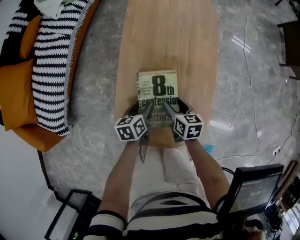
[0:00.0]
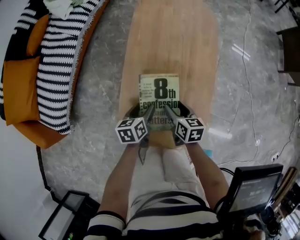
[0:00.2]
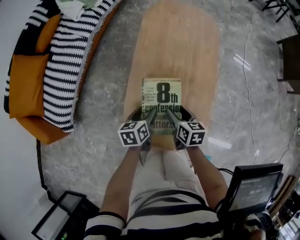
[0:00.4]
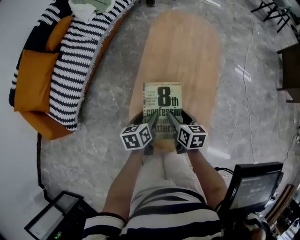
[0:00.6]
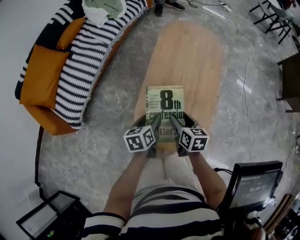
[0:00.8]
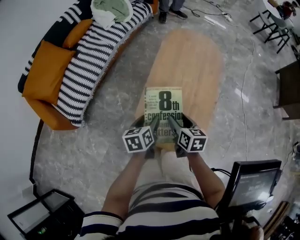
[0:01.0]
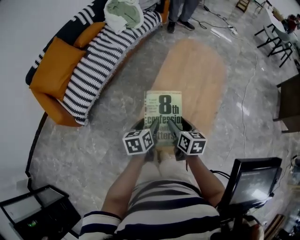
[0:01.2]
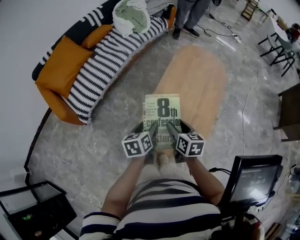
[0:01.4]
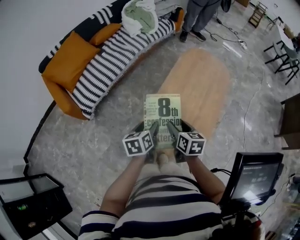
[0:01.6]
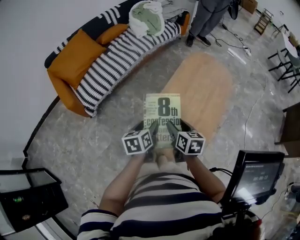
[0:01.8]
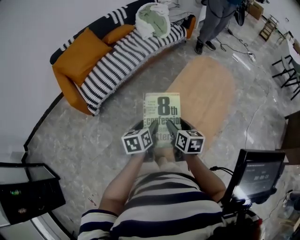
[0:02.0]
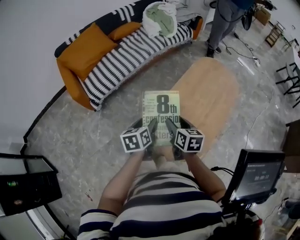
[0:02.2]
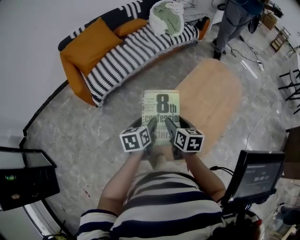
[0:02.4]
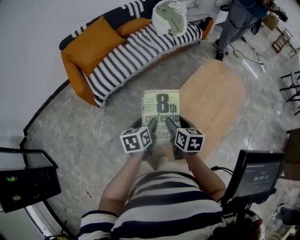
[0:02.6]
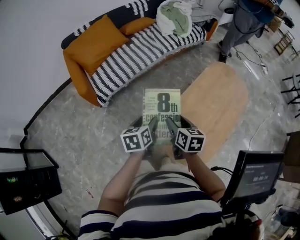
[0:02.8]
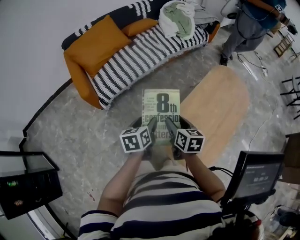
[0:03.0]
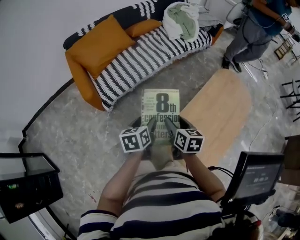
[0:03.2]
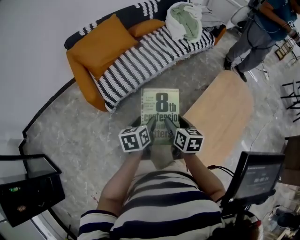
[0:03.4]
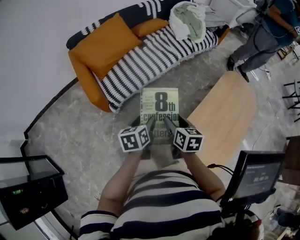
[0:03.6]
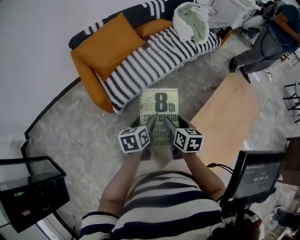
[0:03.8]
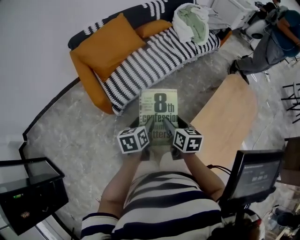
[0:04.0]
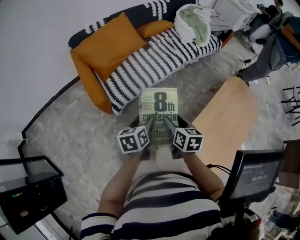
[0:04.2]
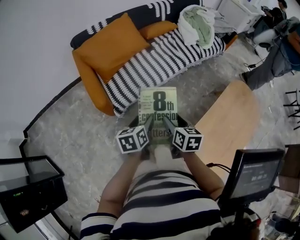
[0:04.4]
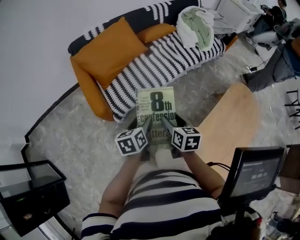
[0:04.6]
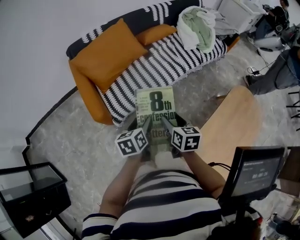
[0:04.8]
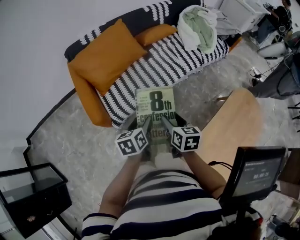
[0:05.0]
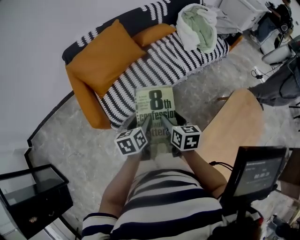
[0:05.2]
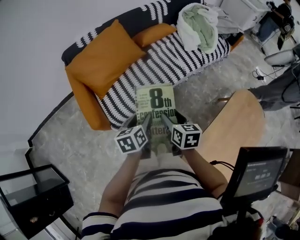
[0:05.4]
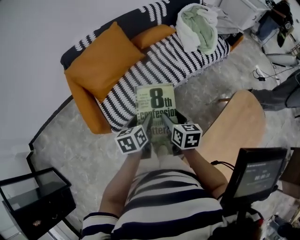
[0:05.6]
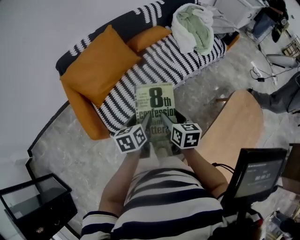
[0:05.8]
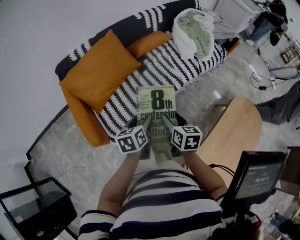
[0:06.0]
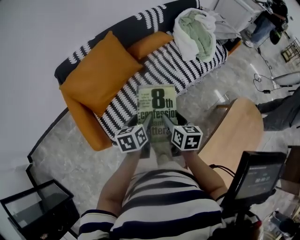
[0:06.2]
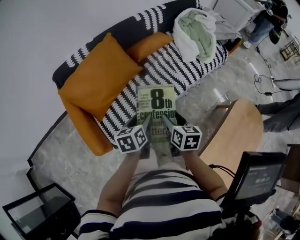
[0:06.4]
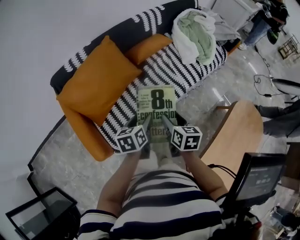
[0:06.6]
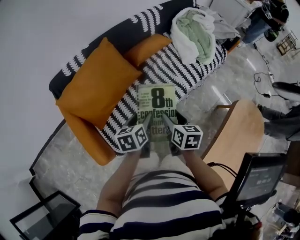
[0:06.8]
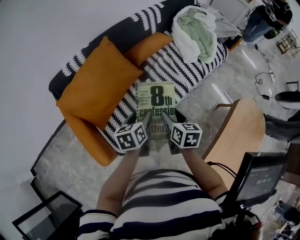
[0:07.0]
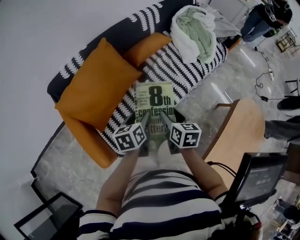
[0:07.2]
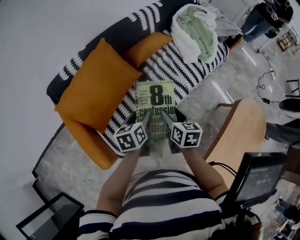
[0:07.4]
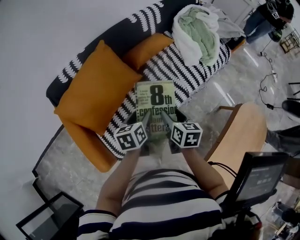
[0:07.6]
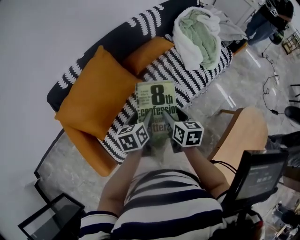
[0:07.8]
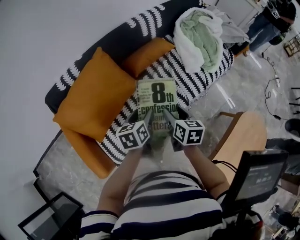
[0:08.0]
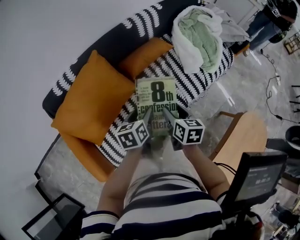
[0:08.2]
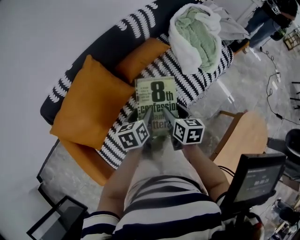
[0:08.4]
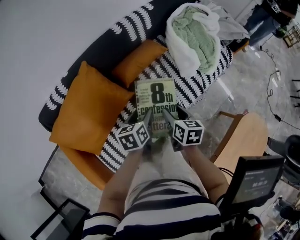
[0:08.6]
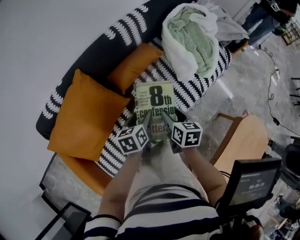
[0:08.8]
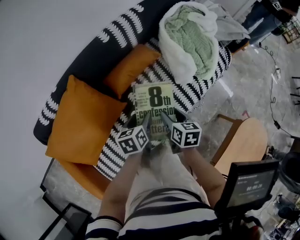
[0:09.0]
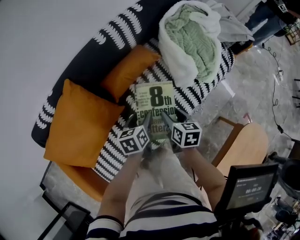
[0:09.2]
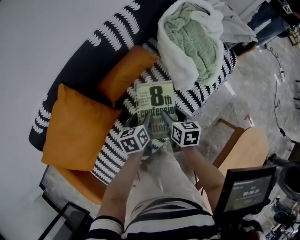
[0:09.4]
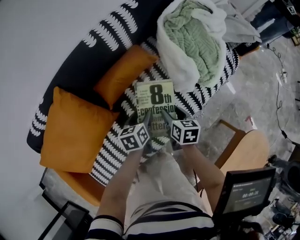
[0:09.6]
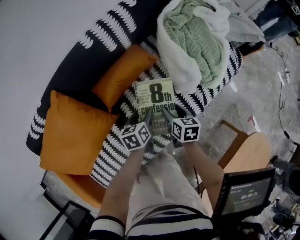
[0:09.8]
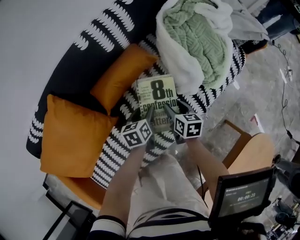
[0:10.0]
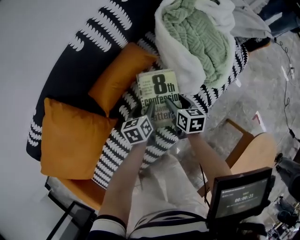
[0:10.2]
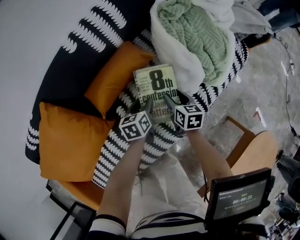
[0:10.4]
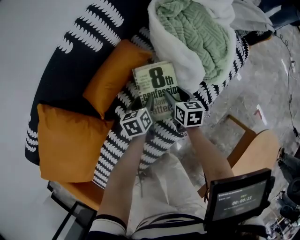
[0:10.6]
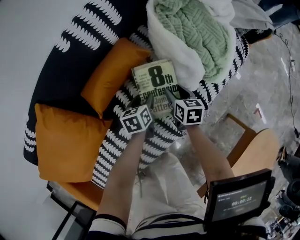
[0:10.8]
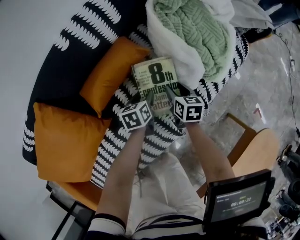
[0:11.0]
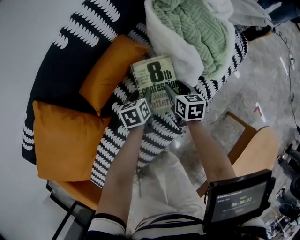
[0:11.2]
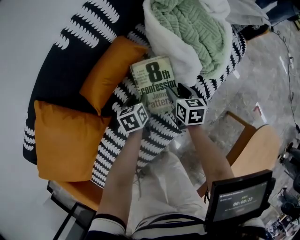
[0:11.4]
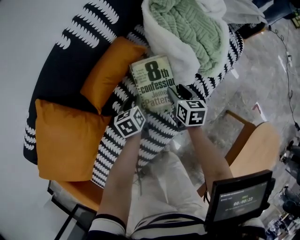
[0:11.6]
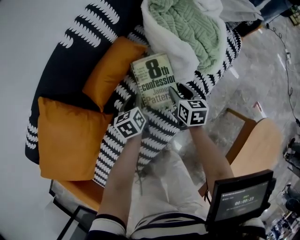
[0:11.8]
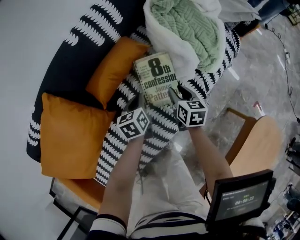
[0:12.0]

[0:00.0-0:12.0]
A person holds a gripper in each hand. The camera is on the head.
0.0 to 1.6 s: The right gripper travels upward and to the left by roughly 25 cm, and swivels roughly 20 degrees; the left gripper travels upward, backward and to the left by roughly 30 cm, and swivels about 30 degrees.
1.6 to 3.0 s: The left gripper moves to the left, about 15 cm. The right gripper travels to the left and forward by approximately 15 cm.
3.0 to 4.4 s: The grippers both shift to the left and forward by approximately 20 cm.
4.4 to 6.0 s: Both grippers move forward, some 25 cm.
6.0 to 7.6 s: Both grippers travel together forward, roughly 15 cm.
7.6 to 9.0 s: The grippers both shift forward and to the right by approximately 20 cm.
9.0 to 10.4 s: Both grippers move downward, forward and to the right, roughly 25 cm.
10.4 to 12.0 s: The right gripper changes place by approximately 5 cm; the left gripper changes place by about 5 cm, and closes up.

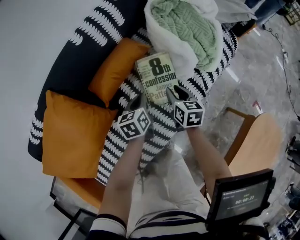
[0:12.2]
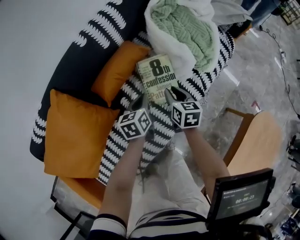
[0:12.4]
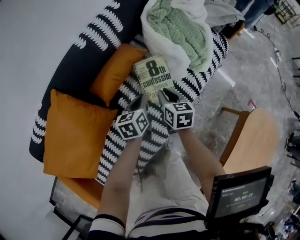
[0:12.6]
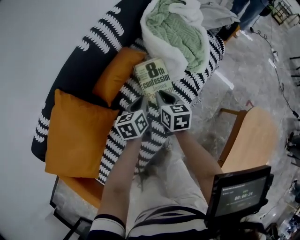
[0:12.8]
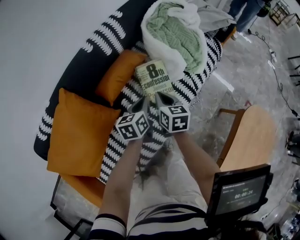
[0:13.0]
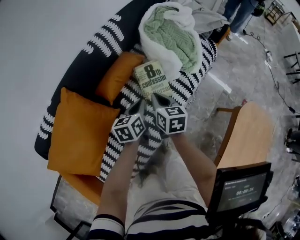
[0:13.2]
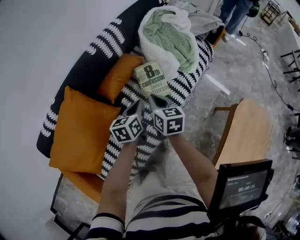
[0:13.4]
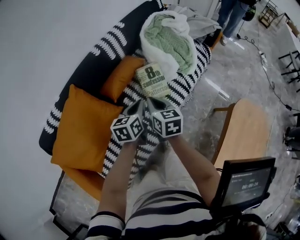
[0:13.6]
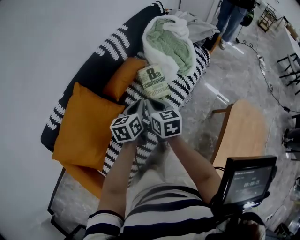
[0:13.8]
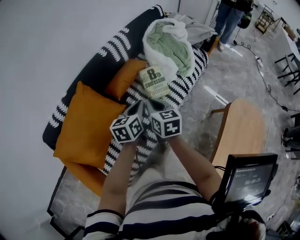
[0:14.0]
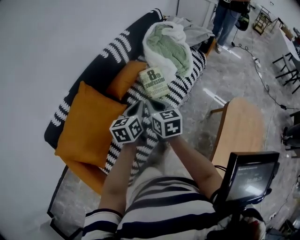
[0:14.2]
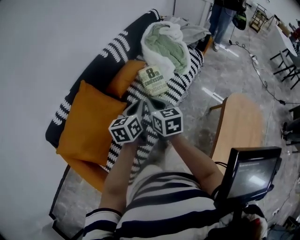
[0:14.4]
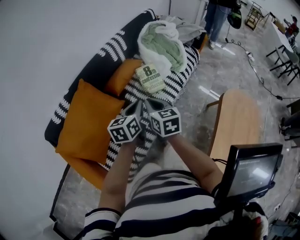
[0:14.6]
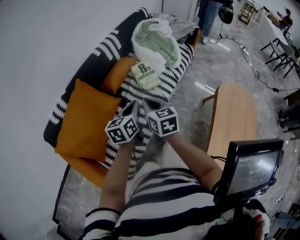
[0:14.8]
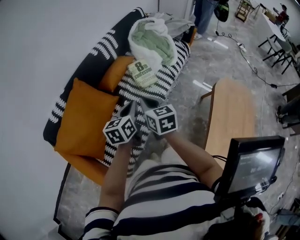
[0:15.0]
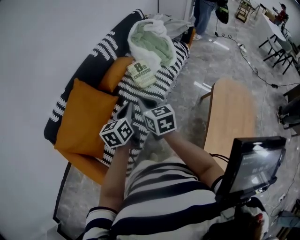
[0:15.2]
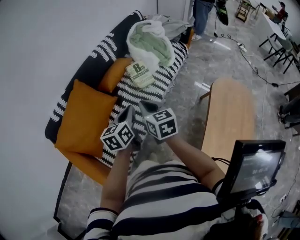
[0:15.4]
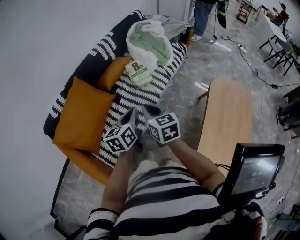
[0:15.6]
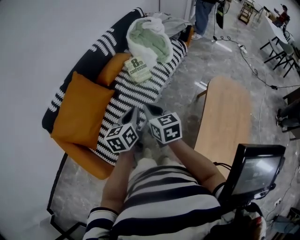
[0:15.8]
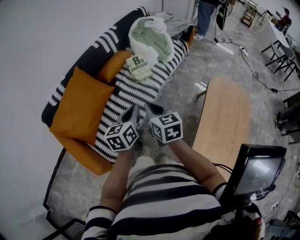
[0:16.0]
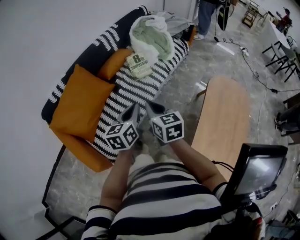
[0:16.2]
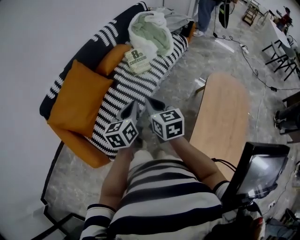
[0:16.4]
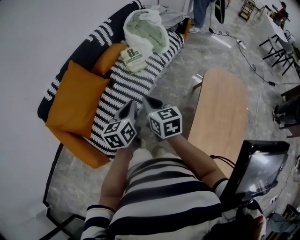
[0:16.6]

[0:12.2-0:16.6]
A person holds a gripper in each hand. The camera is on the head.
12.2 to 13.6 s: The left gripper travels upward and backward by about 25 cm, while the right gripper heads upward, backward and to the left, covering some 25 cm, and closes its fingers.
13.6 to 15.2 s: The grippers both shift backward and upward by about 25 cm.
15.2 to 16.6 s: Both grippers travel together backward and to the right, roughly 15 cm.

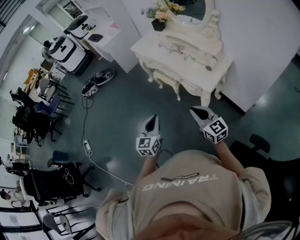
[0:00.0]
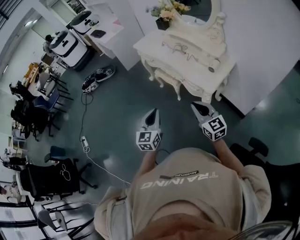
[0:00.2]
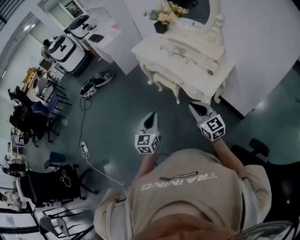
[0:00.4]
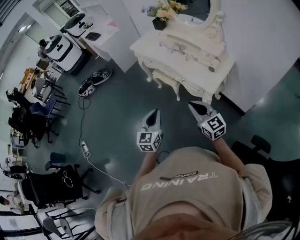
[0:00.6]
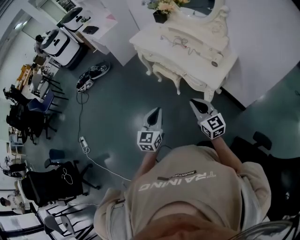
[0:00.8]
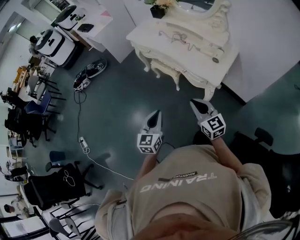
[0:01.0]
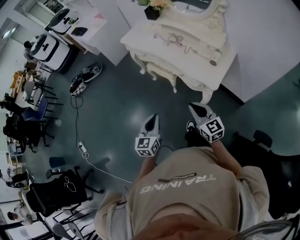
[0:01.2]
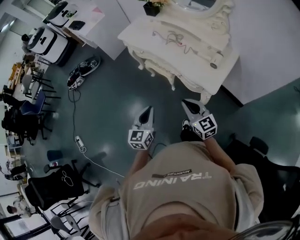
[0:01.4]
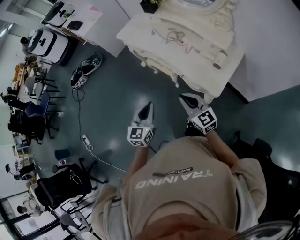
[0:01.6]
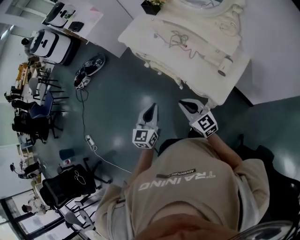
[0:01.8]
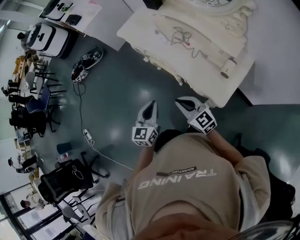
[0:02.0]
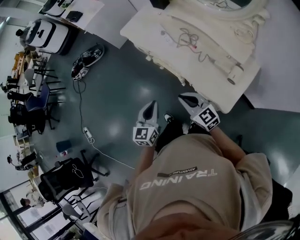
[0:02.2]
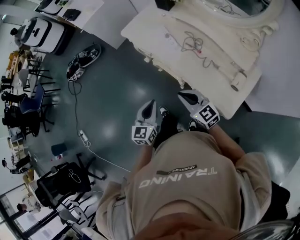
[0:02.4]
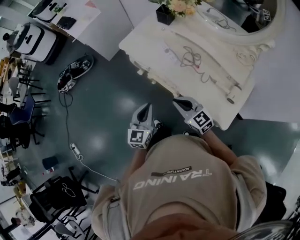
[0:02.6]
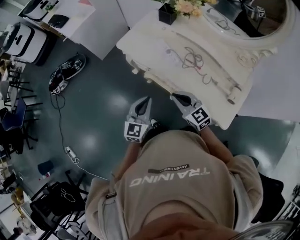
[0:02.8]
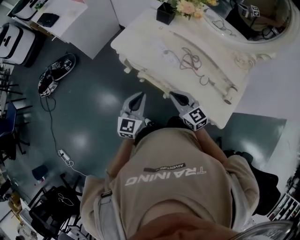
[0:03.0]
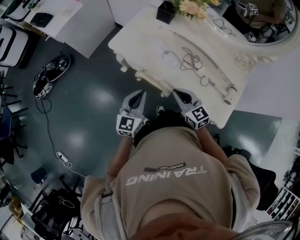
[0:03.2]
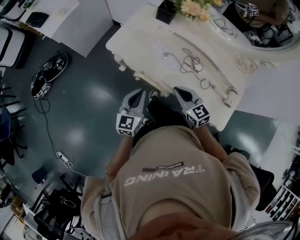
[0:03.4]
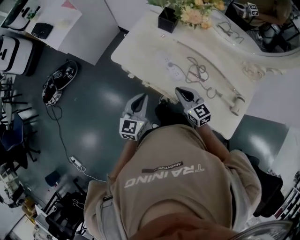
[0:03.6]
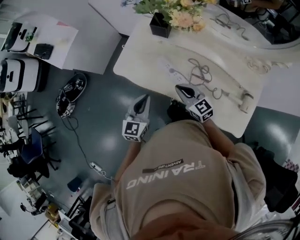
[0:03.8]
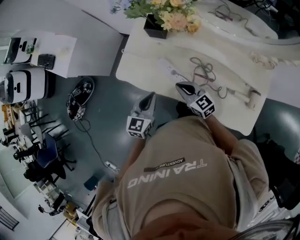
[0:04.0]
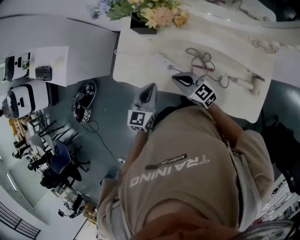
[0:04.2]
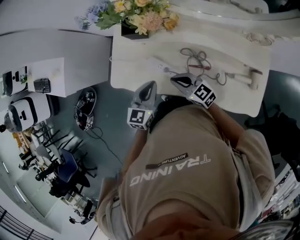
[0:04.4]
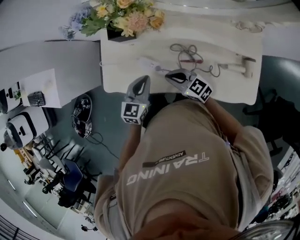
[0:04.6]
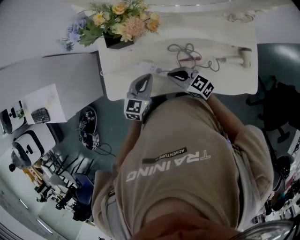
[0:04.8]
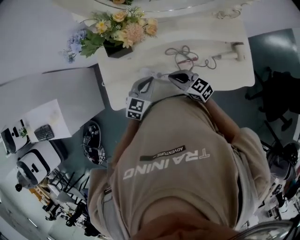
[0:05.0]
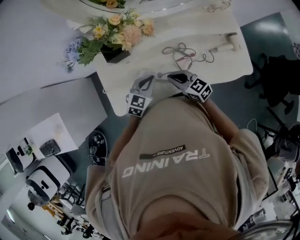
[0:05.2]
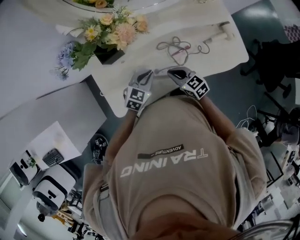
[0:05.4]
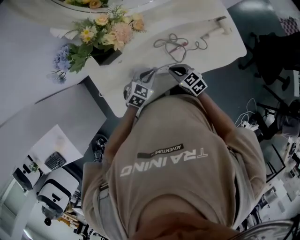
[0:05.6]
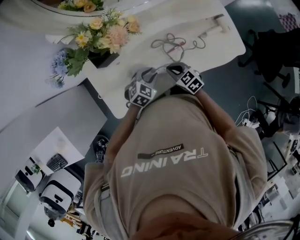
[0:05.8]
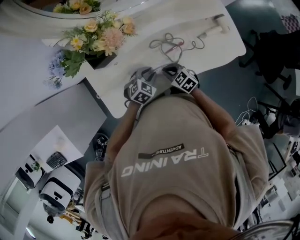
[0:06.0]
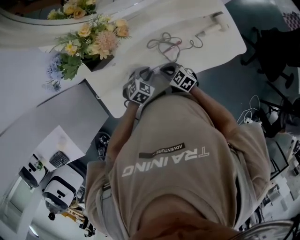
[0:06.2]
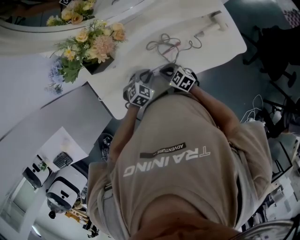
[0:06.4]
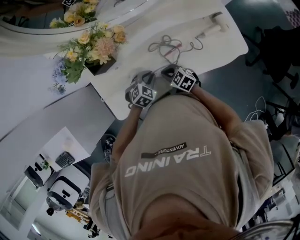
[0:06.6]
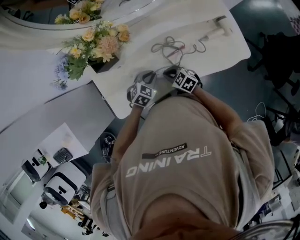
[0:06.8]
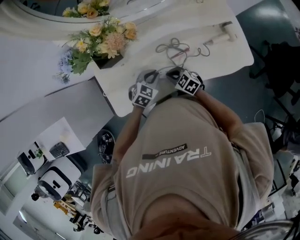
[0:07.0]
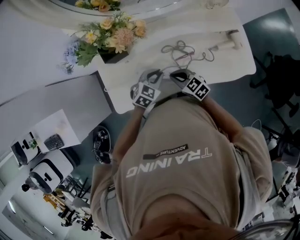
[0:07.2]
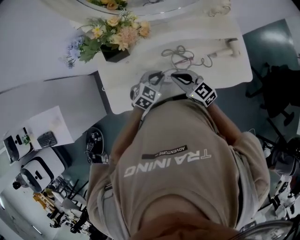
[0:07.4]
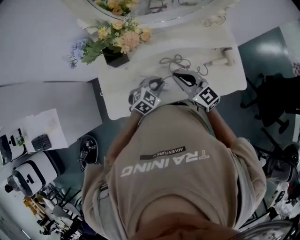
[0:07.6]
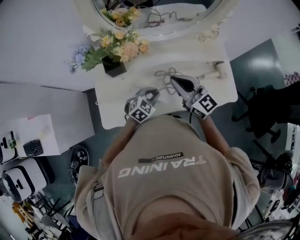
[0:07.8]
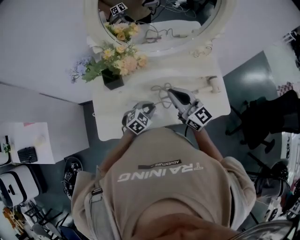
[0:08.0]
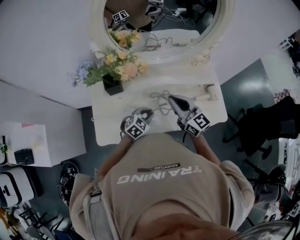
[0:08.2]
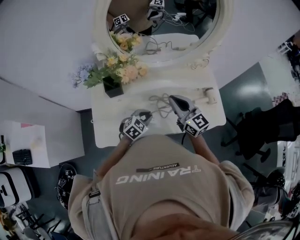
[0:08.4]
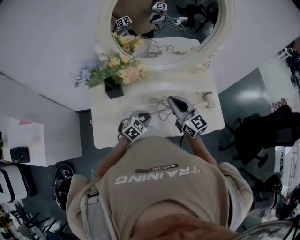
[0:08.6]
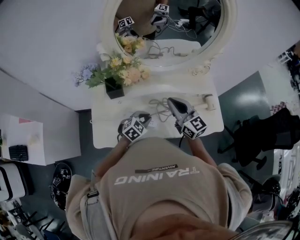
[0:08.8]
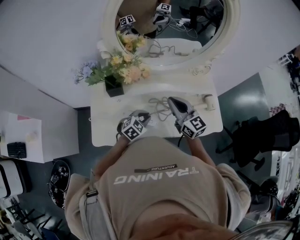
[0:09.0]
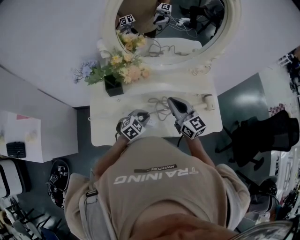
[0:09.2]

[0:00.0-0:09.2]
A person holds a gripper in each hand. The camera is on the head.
0.0 to 1.6 s: The two grippers go about 25 cm forward.
1.6 to 3.0 s: Both grippers travel together forward, approximately 35 cm.
3.0 to 4.6 s: The left gripper shifts roughly 35 cm forward and to the right, and swivels about 40 degrees. The right gripper travels forward by roughly 25 cm.
4.6 to 6.2 s: Both grippers move downward, about 10 cm. The right gripper changes its angle by approximately 40 degrees. Meanwhile the left gripper rotates about 60 degrees, and opens.
6.2 to 7.6 s: The right gripper heads upward, covering roughly 20 cm, and angles its fingers upward, by roughly 30 degrees. Meanwhile the left gripper heads upward, covering approximately 10 cm.
7.6 to 9.2 s: The right gripper shifts about 5 cm upward.
